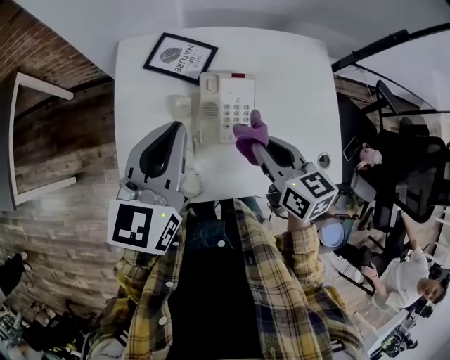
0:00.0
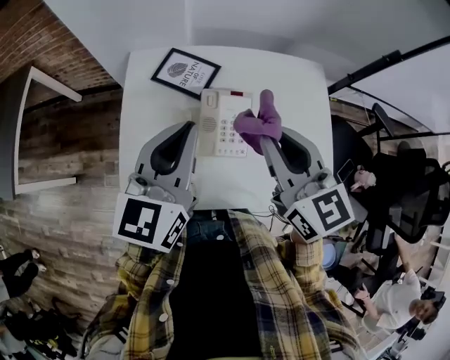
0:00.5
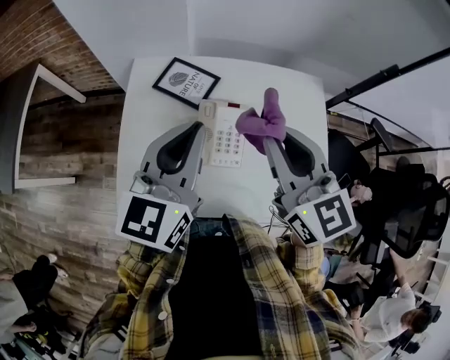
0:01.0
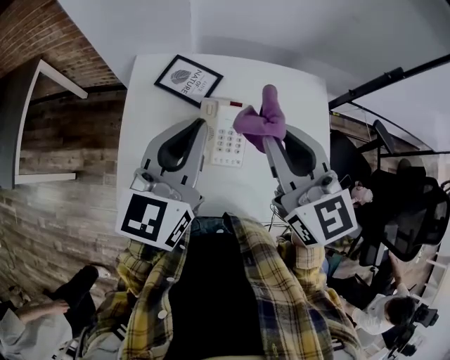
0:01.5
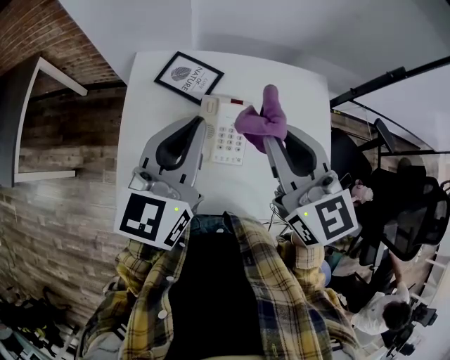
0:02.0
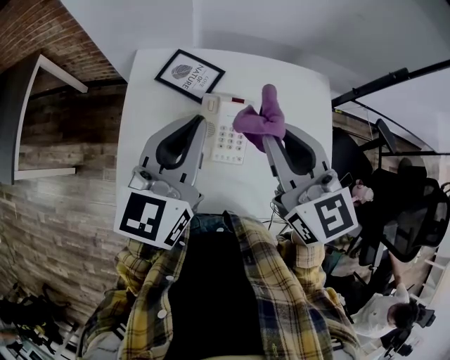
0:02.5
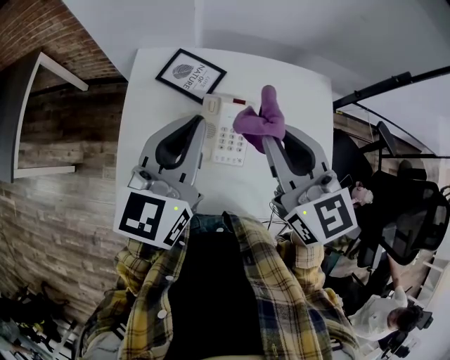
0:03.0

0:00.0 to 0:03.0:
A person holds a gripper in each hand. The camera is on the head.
0:00.0 to 0:01.5: The left gripper is displaced upward and to the right by roughly 10 cm, while the right gripper moves upward, approximately 20 cm, and rotates approximately 30 degrees.
0:01.5 to 0:03.0: The grippers make only small movements.

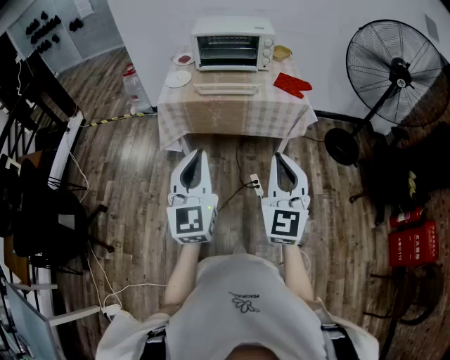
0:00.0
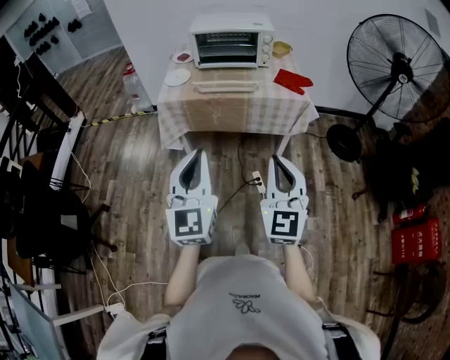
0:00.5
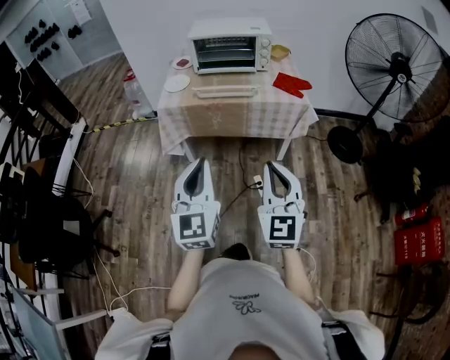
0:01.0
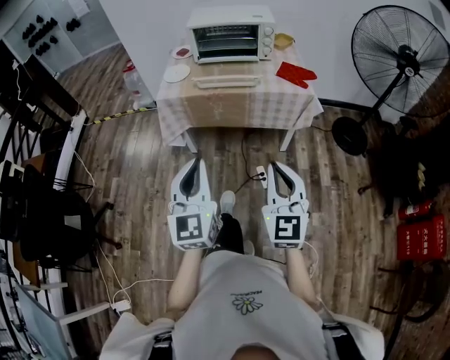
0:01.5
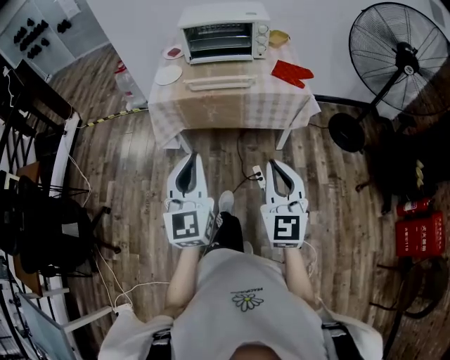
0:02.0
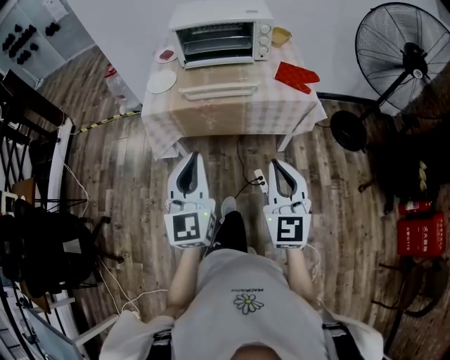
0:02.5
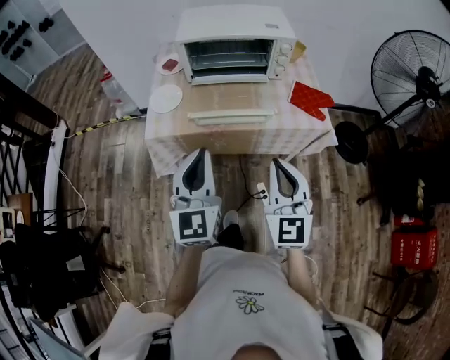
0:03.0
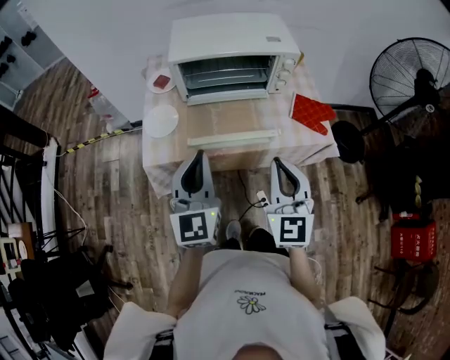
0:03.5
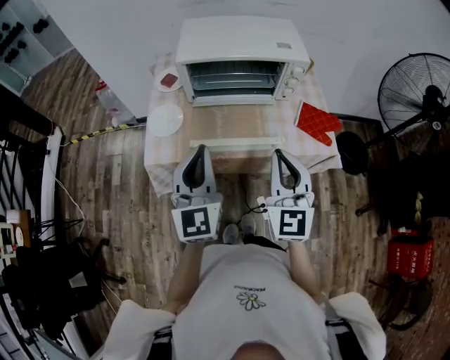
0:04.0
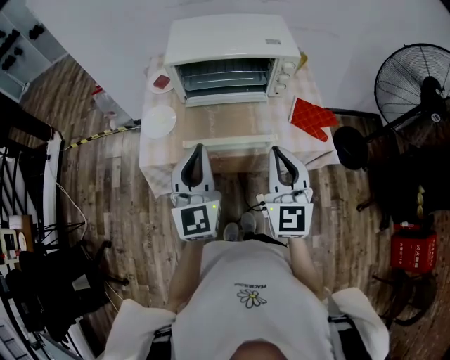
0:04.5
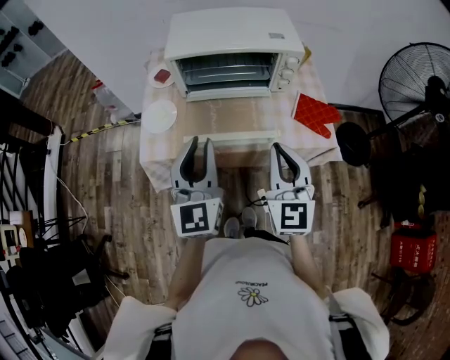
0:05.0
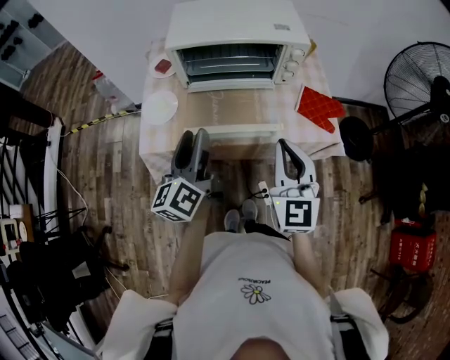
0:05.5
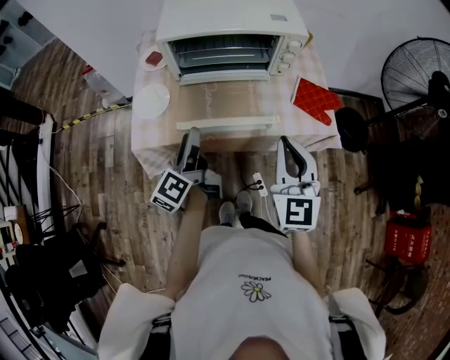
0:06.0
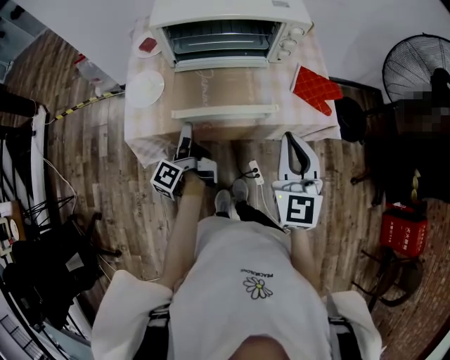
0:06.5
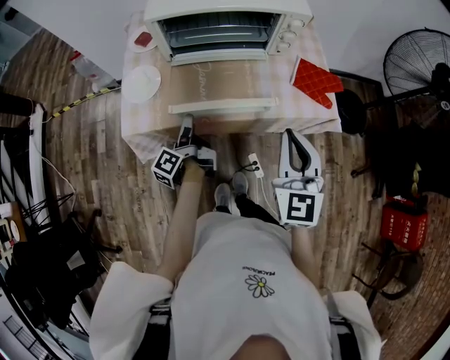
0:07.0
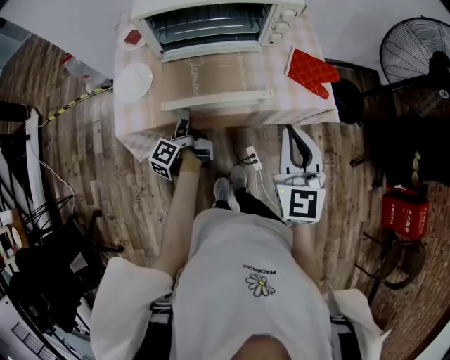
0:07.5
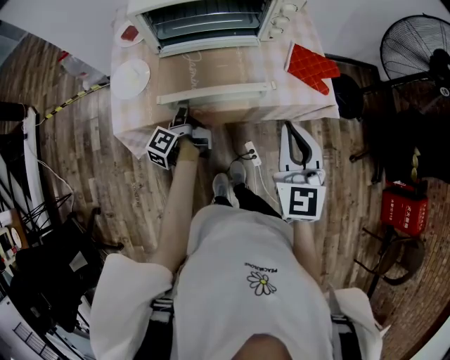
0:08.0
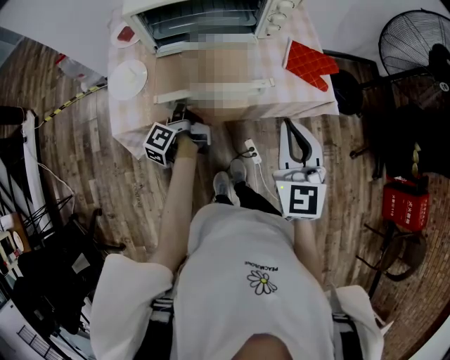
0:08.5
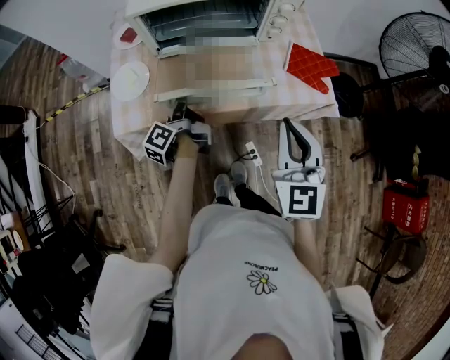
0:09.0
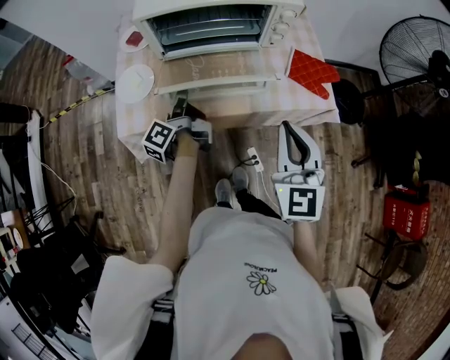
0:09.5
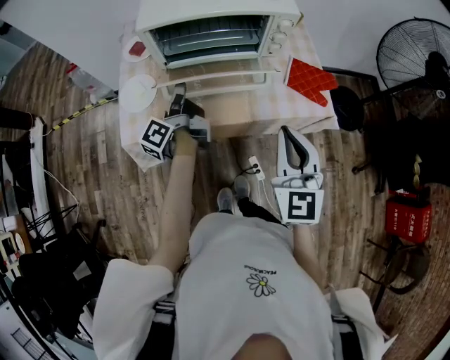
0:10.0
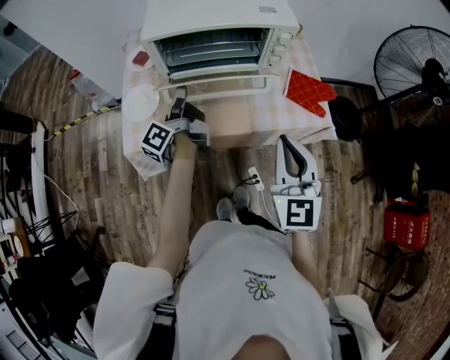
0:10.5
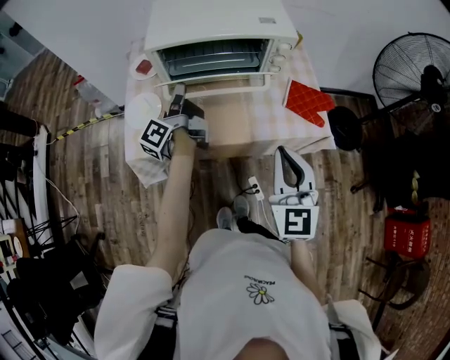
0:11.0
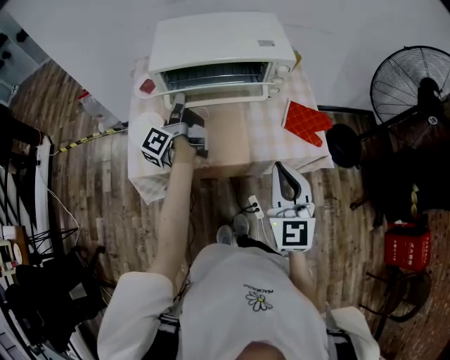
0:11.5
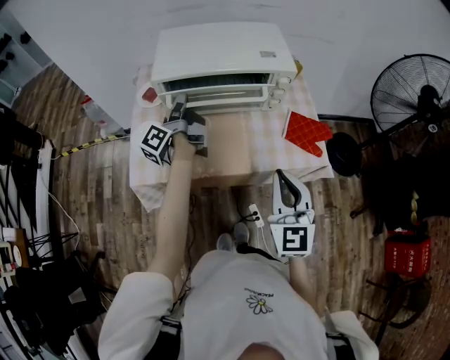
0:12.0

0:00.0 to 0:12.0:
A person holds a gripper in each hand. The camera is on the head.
0:00.0 to 0:02.0: The left gripper heads forward, covering about 5 cm, while the right gripper travels downward by approximately 5 cm.
0:02.0 to 0:04.0: Both grippers move forward, approximately 35 cm.
0:04.0 to 0:06.0: The left gripper moves downward, approximately 15 cm, rolls counterclockwise, seen from behind, by about 70 degrees, and opens its fingers; the right gripper changes place by about 5 cm.
0:06.0 to 0:08.0: The left gripper shifts about 15 cm downward and forward, and changes its angle by about 30 degrees.
0:08.0 to 0:10.0: The left gripper travels upward and forward by some 15 cm, and closes up.
0:10.0 to 0:12.0: The left gripper goes some 15 cm forward and upward.

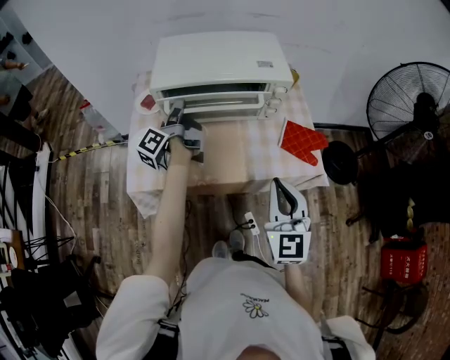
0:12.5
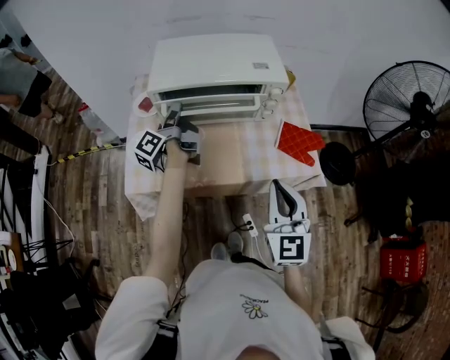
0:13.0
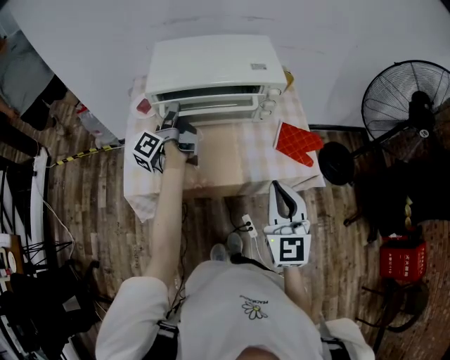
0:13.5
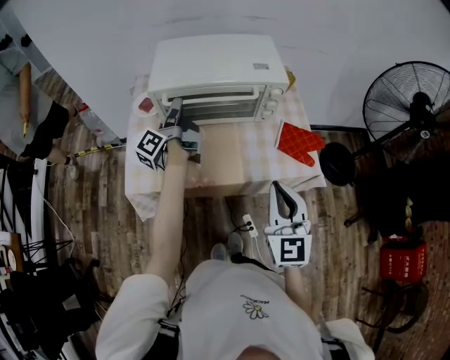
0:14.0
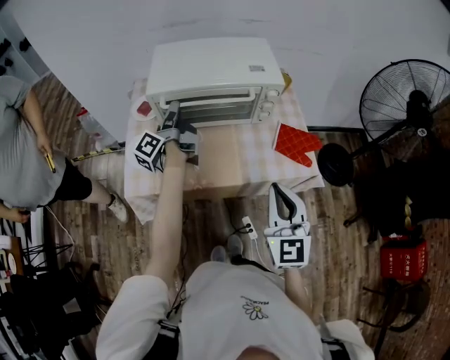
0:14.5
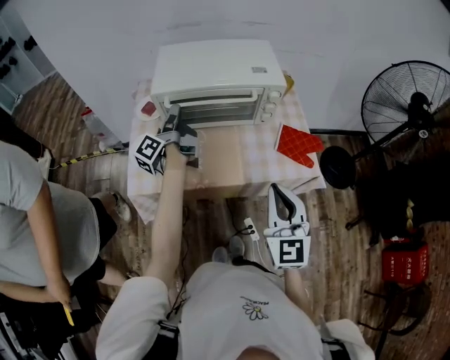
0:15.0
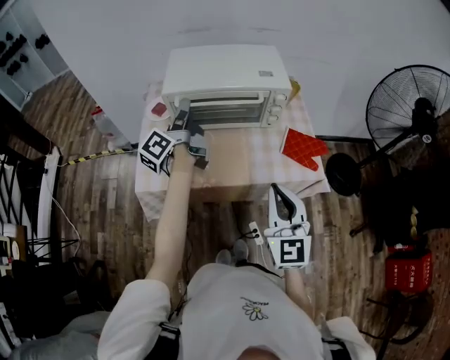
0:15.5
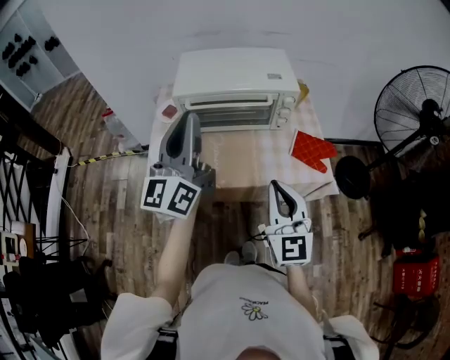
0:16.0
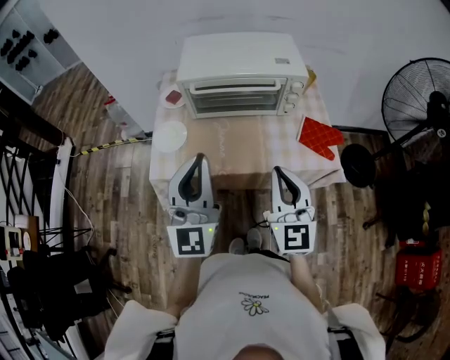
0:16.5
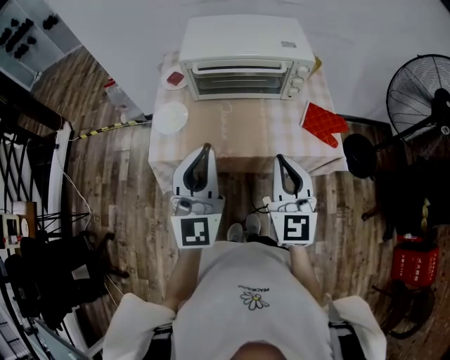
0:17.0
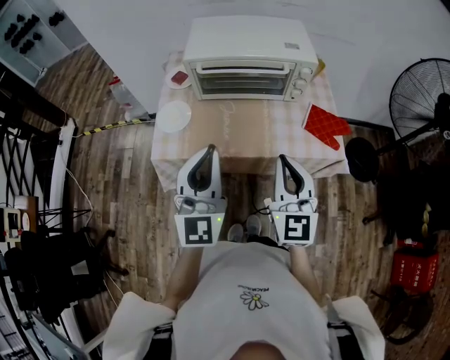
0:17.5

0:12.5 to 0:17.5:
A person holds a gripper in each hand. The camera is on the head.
0:12.5 to 0:15.0: The grippers make only small movements.
0:15.0 to 0:17.5: The left gripper is displaced backward by approximately 30 cm, rotates around the line of its fingers by roughly 90 degrees, clockwise from behind, and closes up.

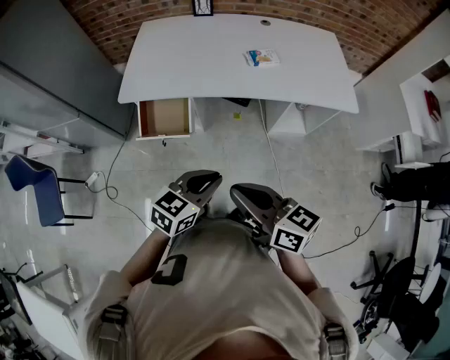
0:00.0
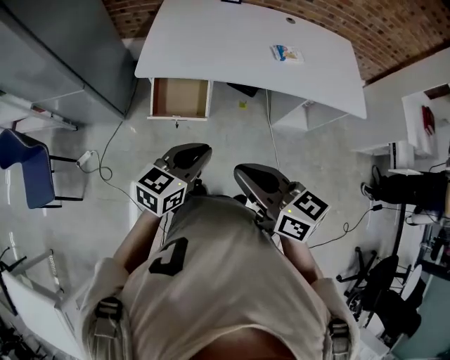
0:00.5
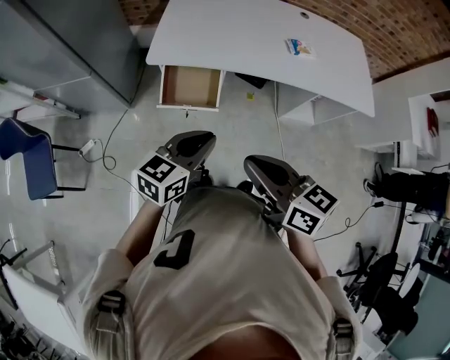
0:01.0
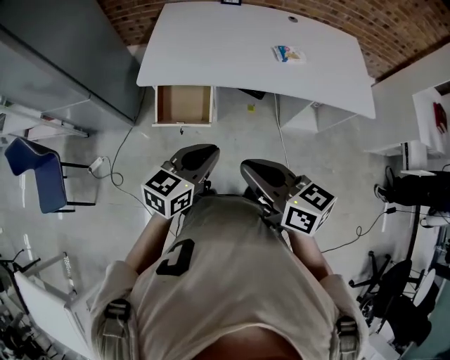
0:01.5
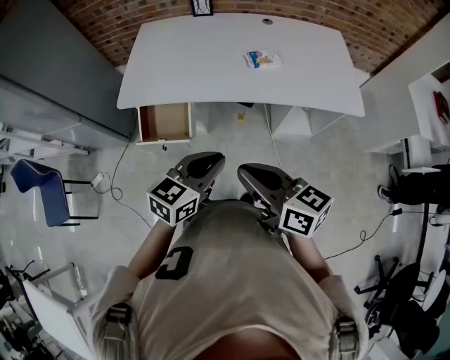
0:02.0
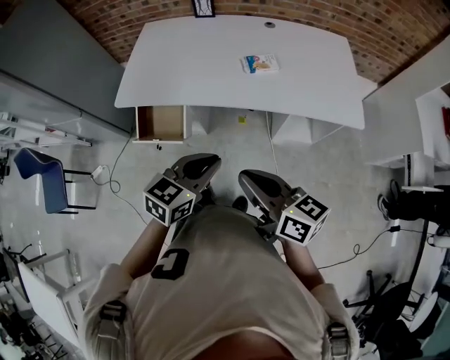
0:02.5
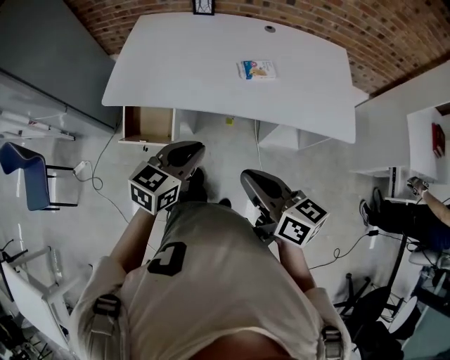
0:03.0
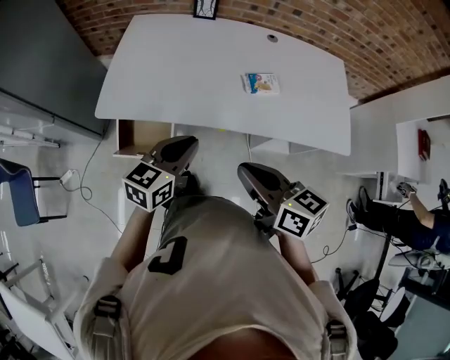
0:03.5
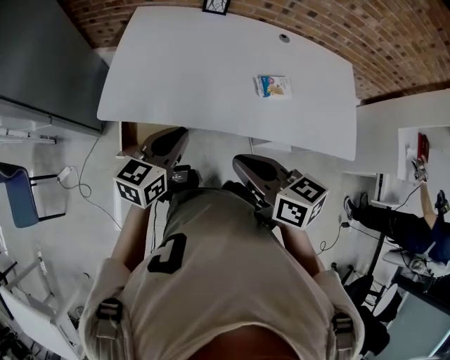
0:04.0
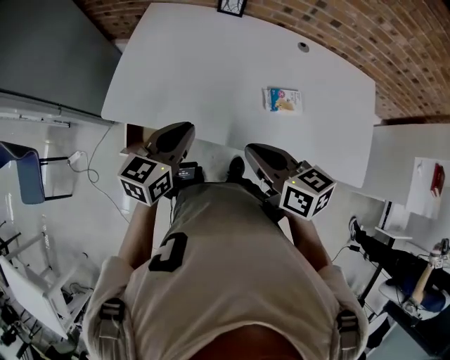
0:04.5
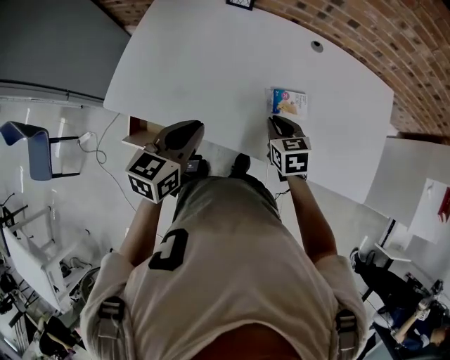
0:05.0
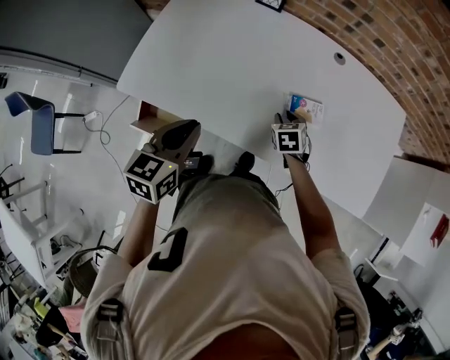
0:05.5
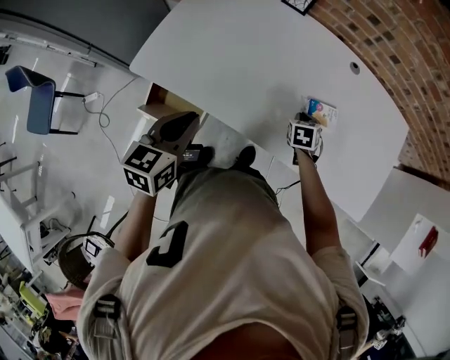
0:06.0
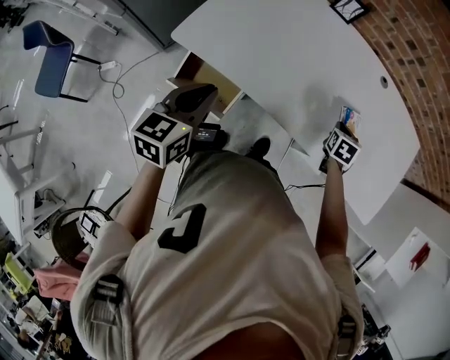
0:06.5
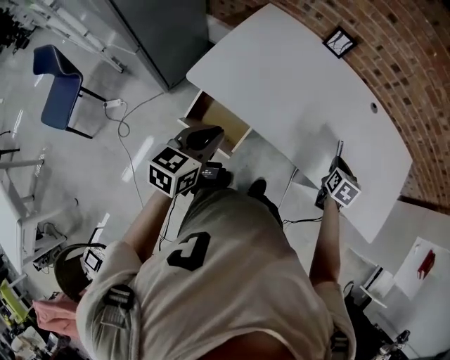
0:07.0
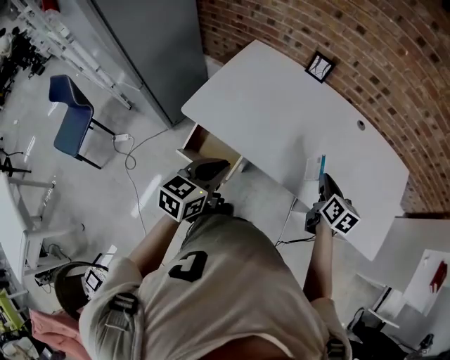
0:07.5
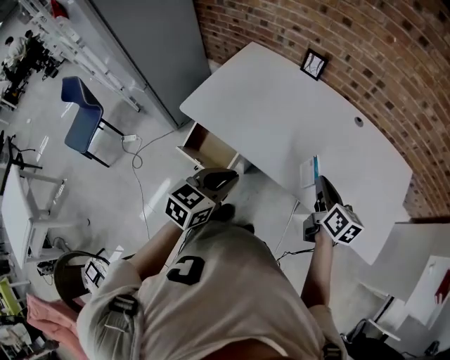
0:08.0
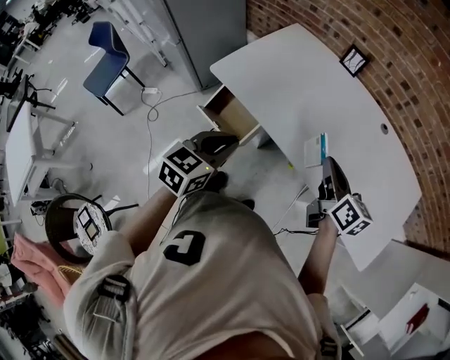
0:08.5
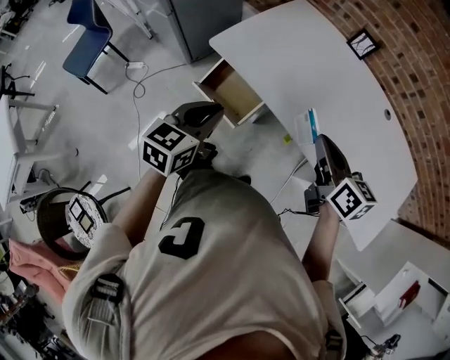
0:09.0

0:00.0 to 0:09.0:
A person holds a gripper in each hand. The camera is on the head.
0:00.0 to 0:02.0: Both grippers move forward, approximately 10 cm. The right gripper reaches approximately 15 cm to the left, then returns, while the left gripper moves some 20 cm to the left and comes back.
0:02.0 to 0:04.5: The two grippers go some 30 cm forward. The left gripper turns by about 20 degrees.
0:04.5 to 0:07.0: The right gripper travels downward, forward and to the right by some 20 cm, rotates approximately 50 degrees, and opens, then closes once more, while the left gripper travels to the left and backward by some 20 cm.
0:07.0 to 0:09.0: The right gripper changes place by roughly 25 cm, and turns by some 50 degrees.
